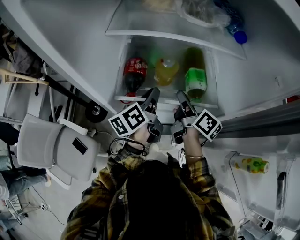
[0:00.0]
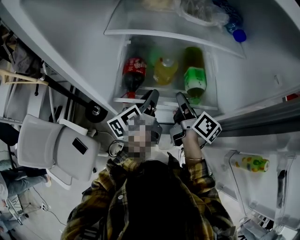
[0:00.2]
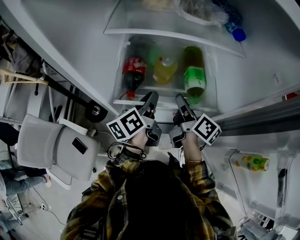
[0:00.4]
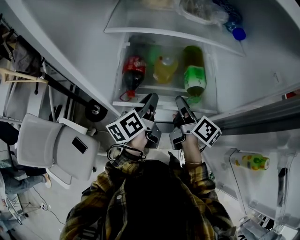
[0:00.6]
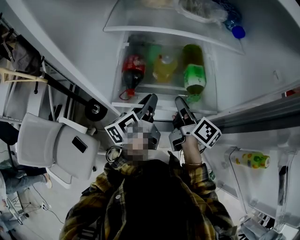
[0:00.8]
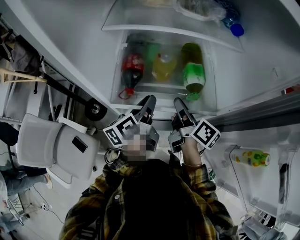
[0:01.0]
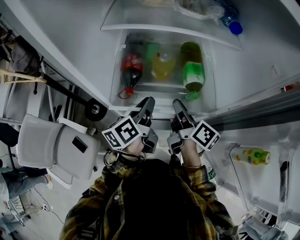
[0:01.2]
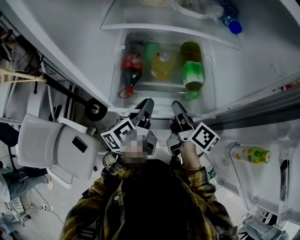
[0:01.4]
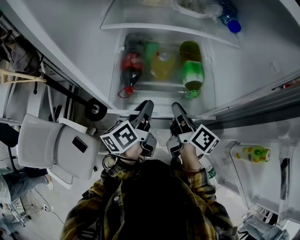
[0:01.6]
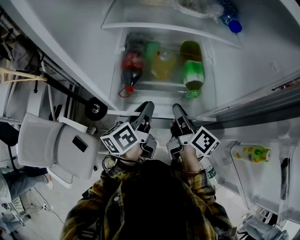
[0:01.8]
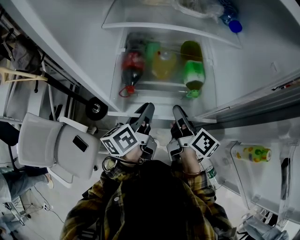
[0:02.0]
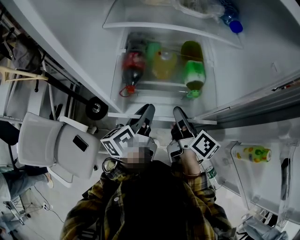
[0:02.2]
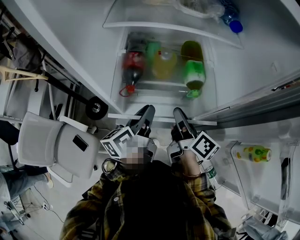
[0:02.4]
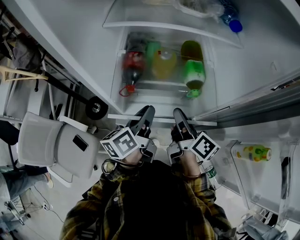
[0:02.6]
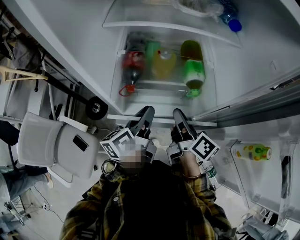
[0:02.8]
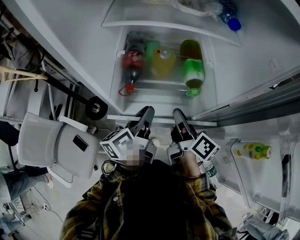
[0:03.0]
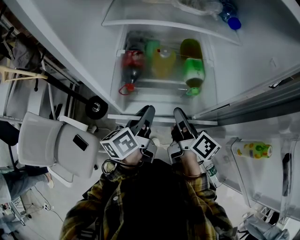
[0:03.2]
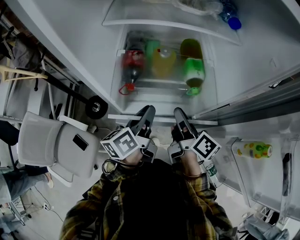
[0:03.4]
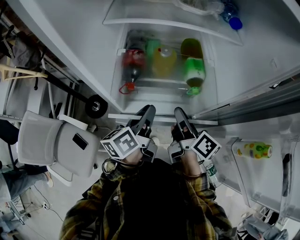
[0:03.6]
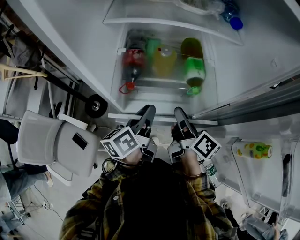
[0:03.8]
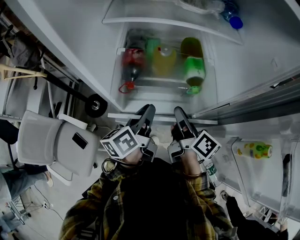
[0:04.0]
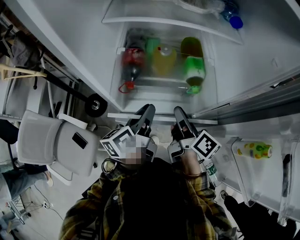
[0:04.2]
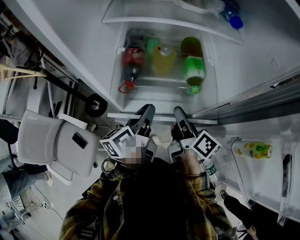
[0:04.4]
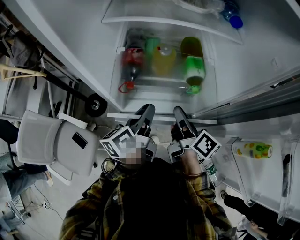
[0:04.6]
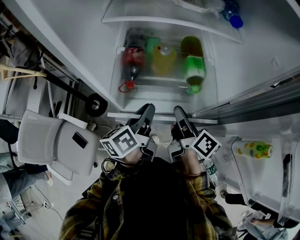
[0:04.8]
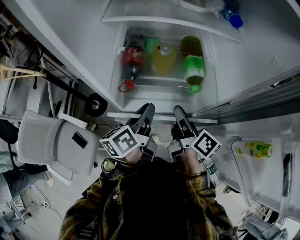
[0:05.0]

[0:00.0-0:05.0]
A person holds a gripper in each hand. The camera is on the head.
0.0 to 1.6 s: Both grippers move backward, approximately 10 cm.
1.6 to 3.4 s: The grippers move only a little.
3.4 to 5.0 s: Both grippers stay about where they are.

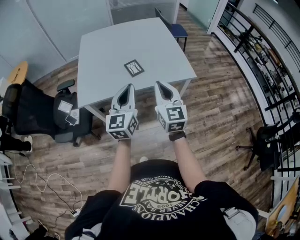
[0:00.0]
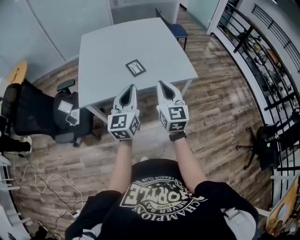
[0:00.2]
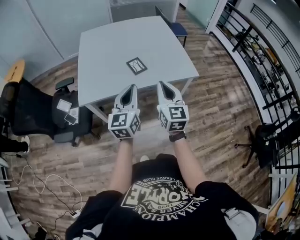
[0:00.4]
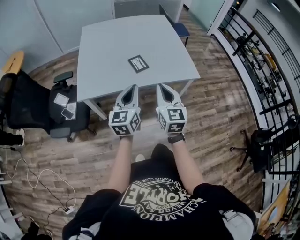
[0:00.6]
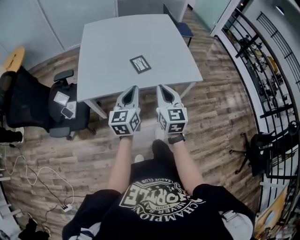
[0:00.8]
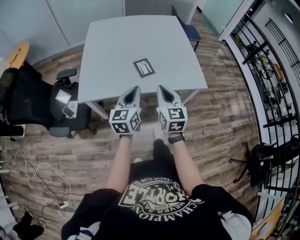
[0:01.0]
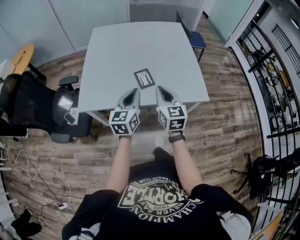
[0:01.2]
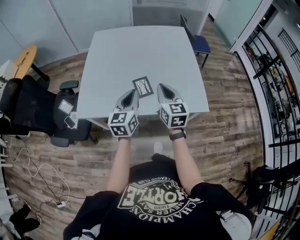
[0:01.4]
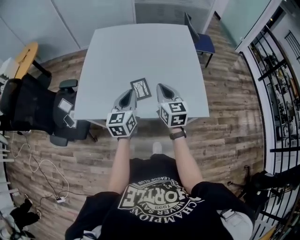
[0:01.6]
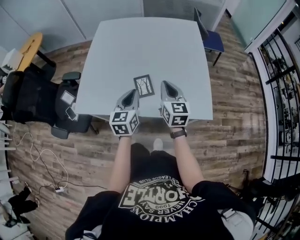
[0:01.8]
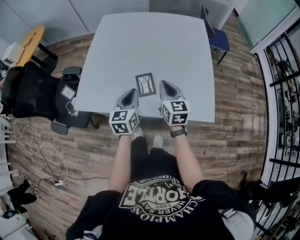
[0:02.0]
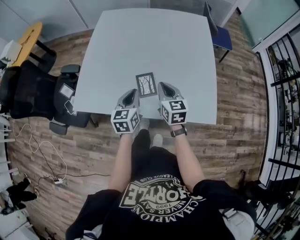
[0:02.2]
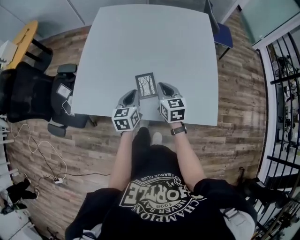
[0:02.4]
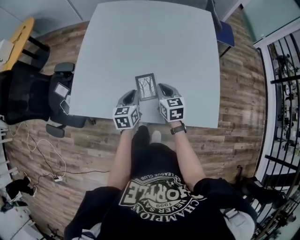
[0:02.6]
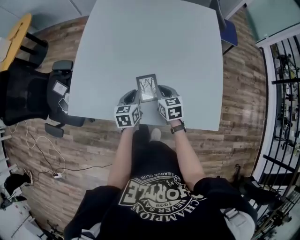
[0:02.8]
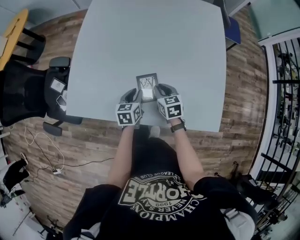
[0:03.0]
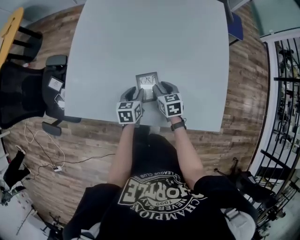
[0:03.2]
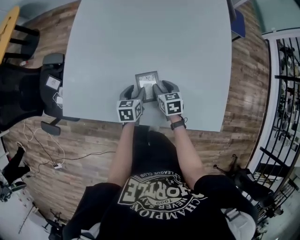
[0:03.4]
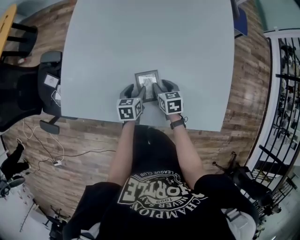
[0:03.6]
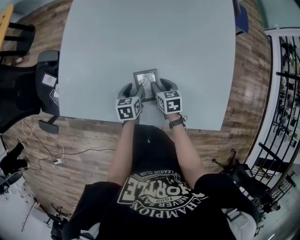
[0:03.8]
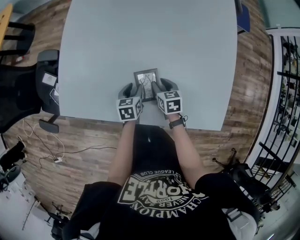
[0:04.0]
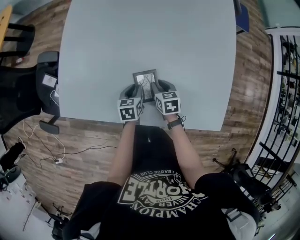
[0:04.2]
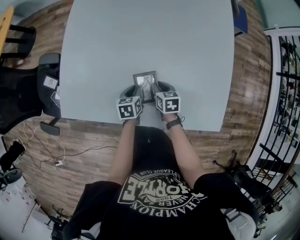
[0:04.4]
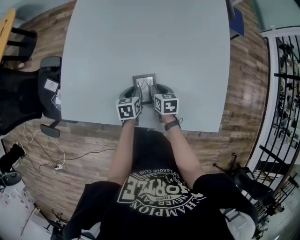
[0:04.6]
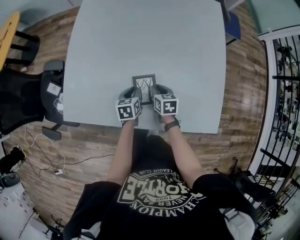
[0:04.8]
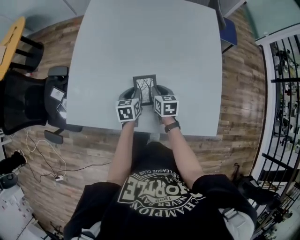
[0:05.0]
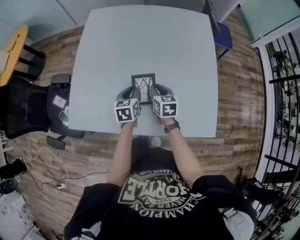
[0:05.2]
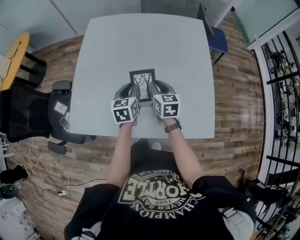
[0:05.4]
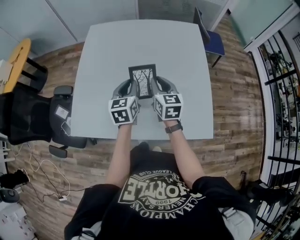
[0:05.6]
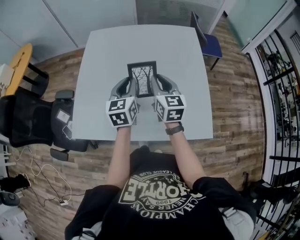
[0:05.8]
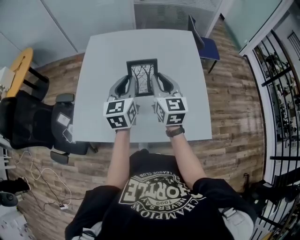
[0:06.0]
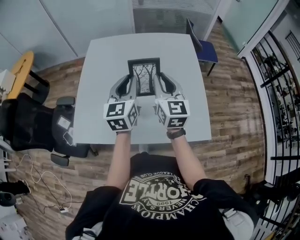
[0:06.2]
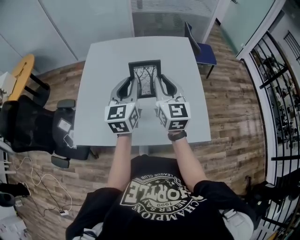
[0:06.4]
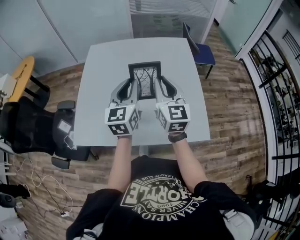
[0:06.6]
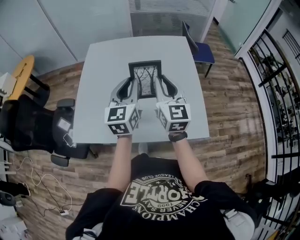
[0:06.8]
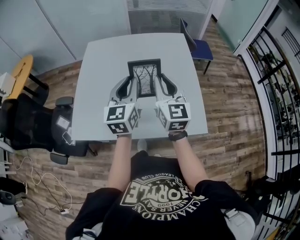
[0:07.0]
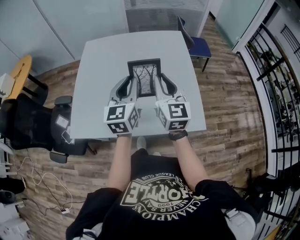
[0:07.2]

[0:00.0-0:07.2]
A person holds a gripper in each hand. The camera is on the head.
0.0 to 1.4 s: The grippers both shift forward by roughly 25 cm.
1.4 to 2.8 s: Both grippers move downward and forward, approximately 30 cm. The left gripper changes its angle by approximately 30 degrees. The right gripper rotates roughly 30 degrees.
2.8 to 4.4 s: The grippers both shift downward and forward by some 15 cm. The left gripper opens, then closes again. Meanwhile the right gripper changes its angle by some 20 degrees, and opens, then closes again.
4.4 to 5.8 s: Both grippers travel together upward, approximately 35 cm. The right gripper tilts its fingers approximately 40 degrees upward; the left gripper tilts its fingers about 30 degrees upward.
5.8 to 7.2 s: The two grippers go roughly 15 cm backward, upward and to the right.

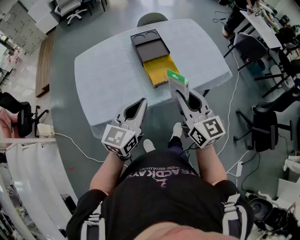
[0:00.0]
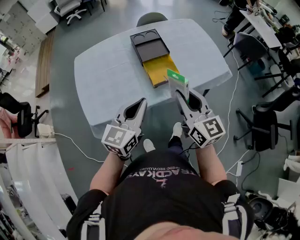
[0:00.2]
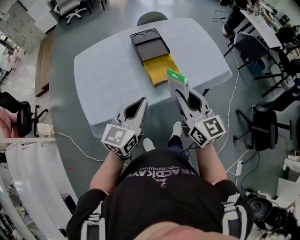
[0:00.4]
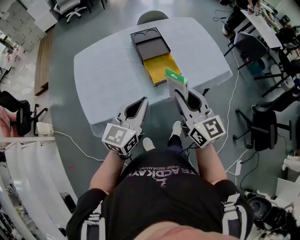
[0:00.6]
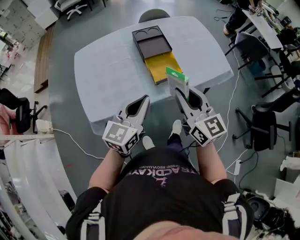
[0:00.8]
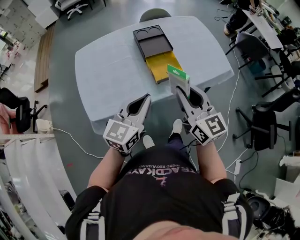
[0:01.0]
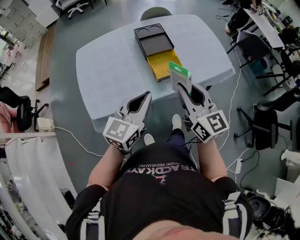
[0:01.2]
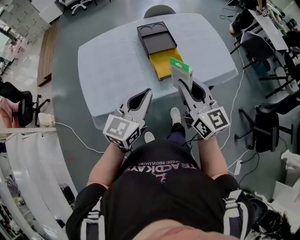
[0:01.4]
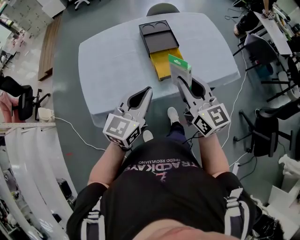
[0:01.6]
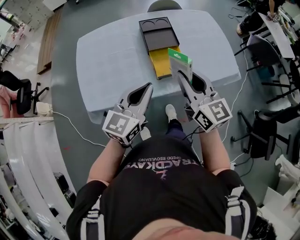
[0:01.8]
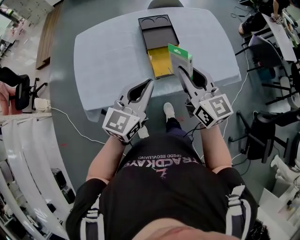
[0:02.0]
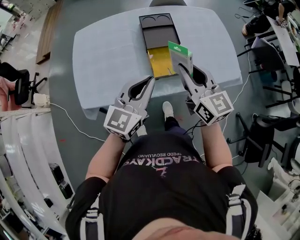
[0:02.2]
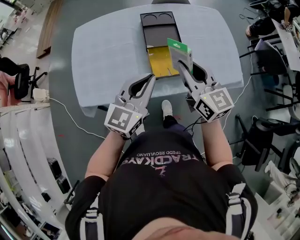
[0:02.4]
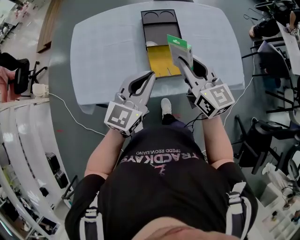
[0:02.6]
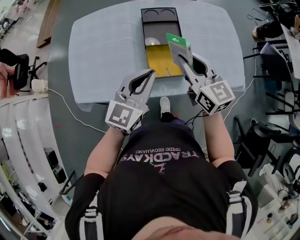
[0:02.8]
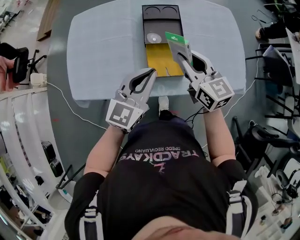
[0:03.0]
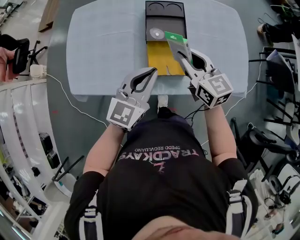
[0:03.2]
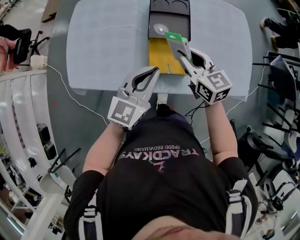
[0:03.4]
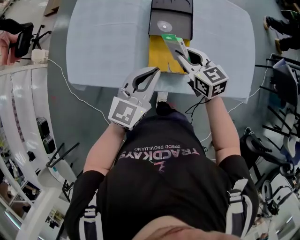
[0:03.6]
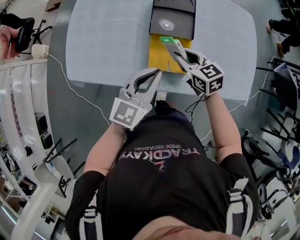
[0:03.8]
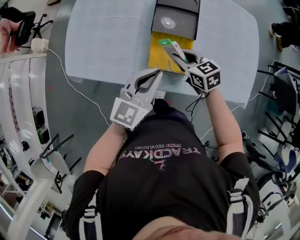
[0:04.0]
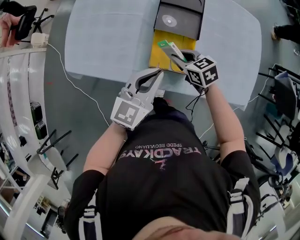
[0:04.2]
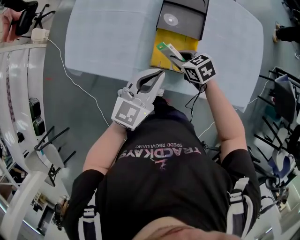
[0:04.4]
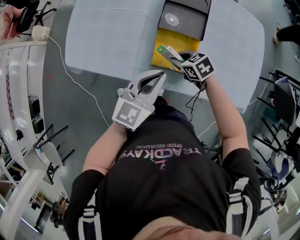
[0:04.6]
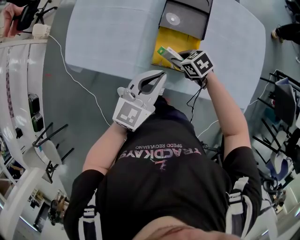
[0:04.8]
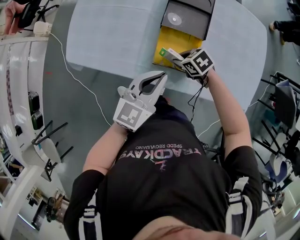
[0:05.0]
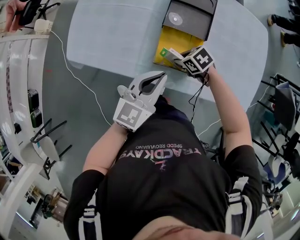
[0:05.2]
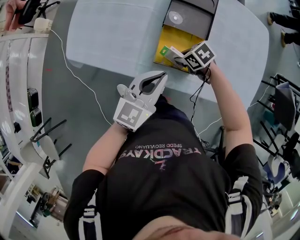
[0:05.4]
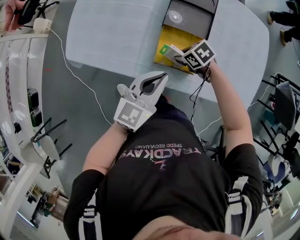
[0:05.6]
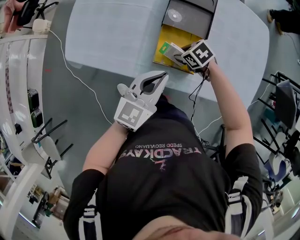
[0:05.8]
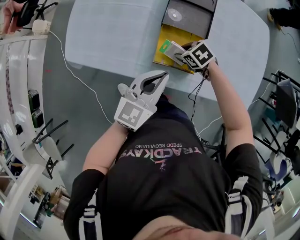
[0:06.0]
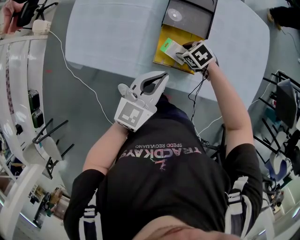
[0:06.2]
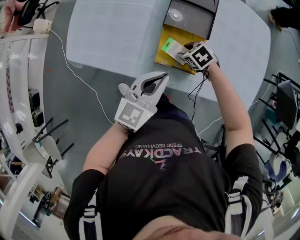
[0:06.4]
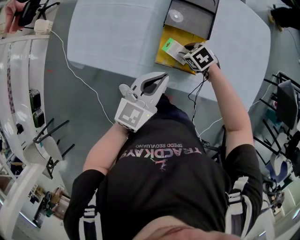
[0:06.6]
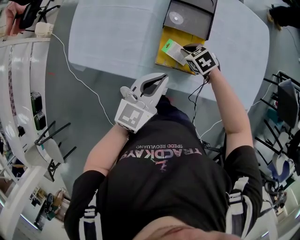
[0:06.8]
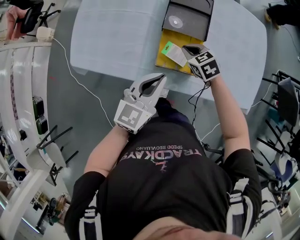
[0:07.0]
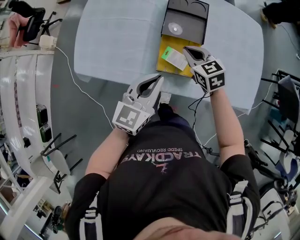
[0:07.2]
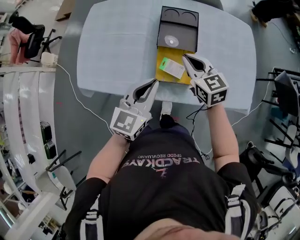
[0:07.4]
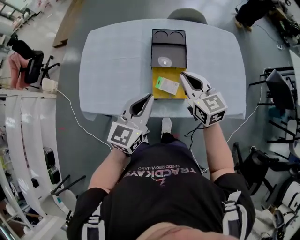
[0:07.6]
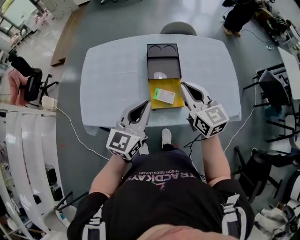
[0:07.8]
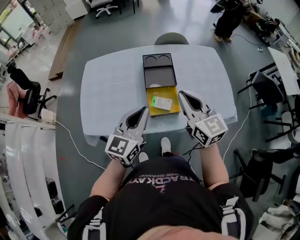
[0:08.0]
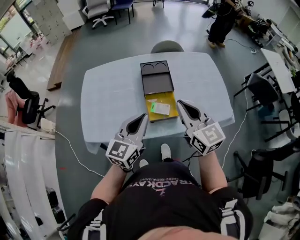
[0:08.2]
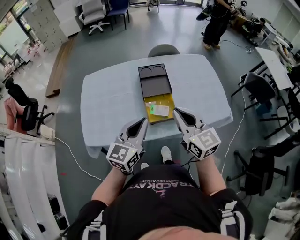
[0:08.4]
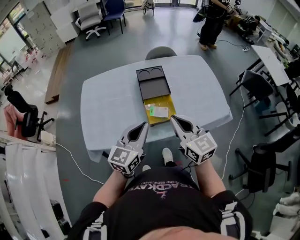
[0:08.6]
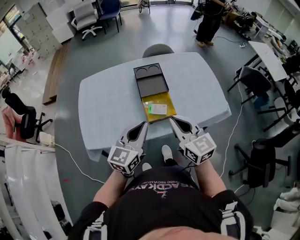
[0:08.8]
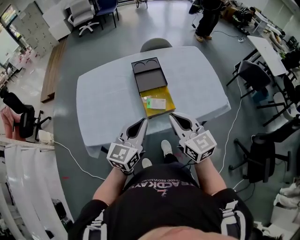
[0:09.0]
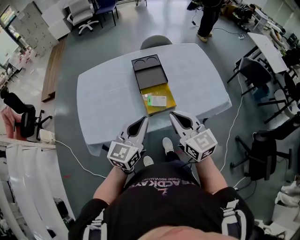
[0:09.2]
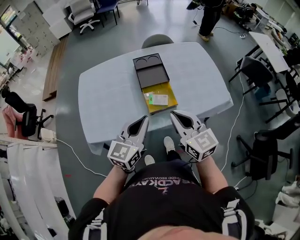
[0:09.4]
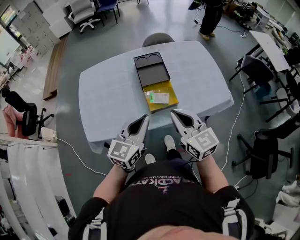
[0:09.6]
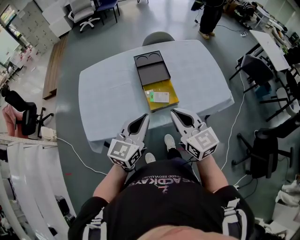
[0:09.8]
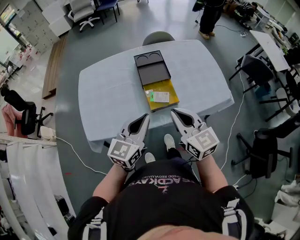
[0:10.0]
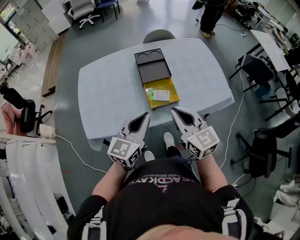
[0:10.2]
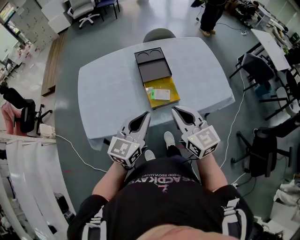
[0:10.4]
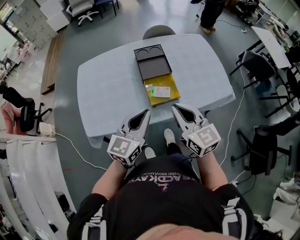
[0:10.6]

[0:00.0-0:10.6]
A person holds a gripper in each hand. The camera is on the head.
0.0 to 1.6 s: The grippers stay close to where they were, moving slightly.
1.6 to 3.0 s: The left gripper heads forward and to the right, covering about 15 cm; the right gripper goes about 20 cm forward and downward.
3.0 to 4.6 s: The left gripper moves downward, approximately 10 cm, while the right gripper travels downward by some 25 cm, and angles its fingers downward, by approximately 40 degrees.
4.6 to 6.0 s: The right gripper opens up.
6.0 to 7.6 s: The left gripper moves upward, some 10 cm, while the right gripper heads upward, covering some 30 cm, angles its fingers upward, by about 50 degrees, and closes up.
7.6 to 9.0 s: The left gripper moves backward, some 10 cm; the right gripper shifts approximately 20 cm backward and upward.
9.0 to 10.6 s: The grippers move only a little.

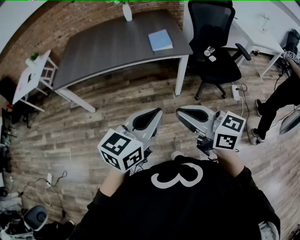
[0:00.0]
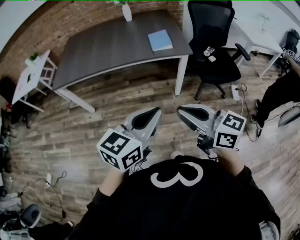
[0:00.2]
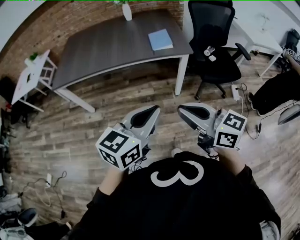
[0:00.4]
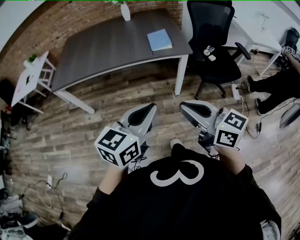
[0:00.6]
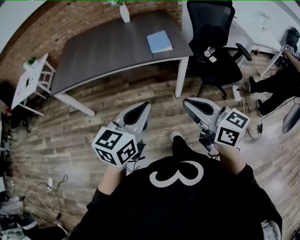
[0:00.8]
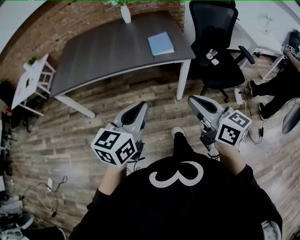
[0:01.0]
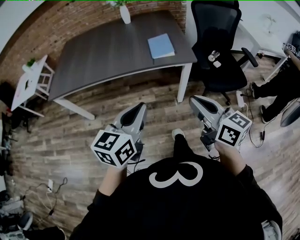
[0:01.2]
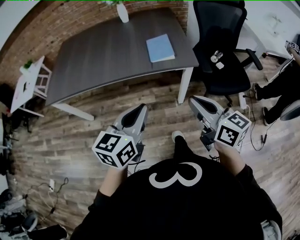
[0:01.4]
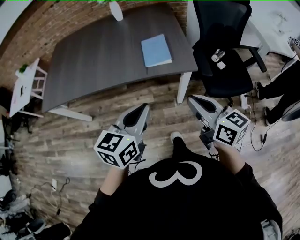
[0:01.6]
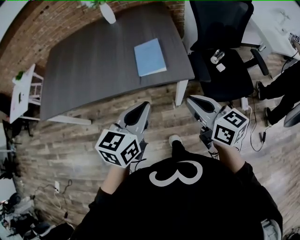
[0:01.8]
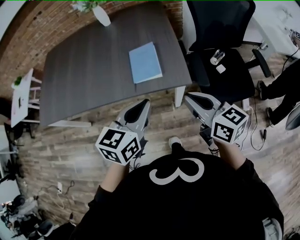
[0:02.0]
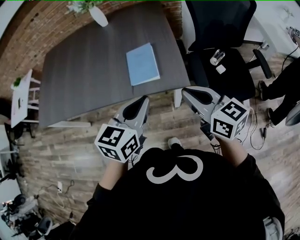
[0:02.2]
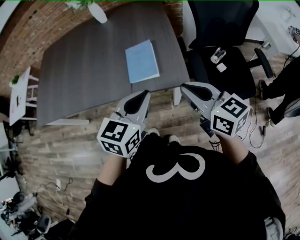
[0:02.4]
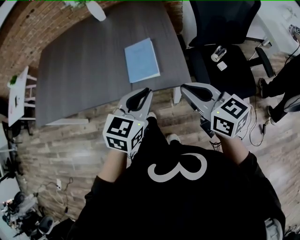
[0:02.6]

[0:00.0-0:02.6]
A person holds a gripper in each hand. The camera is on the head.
0.0 to 1.2 s: The left gripper heads forward, covering approximately 15 cm; the right gripper is displaced forward and to the right by about 15 cm.
1.2 to 2.6 s: Both grippers travel together forward and to the right, approximately 35 cm.
